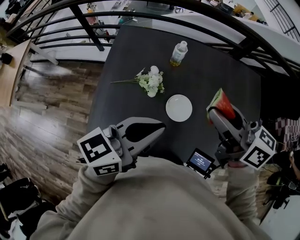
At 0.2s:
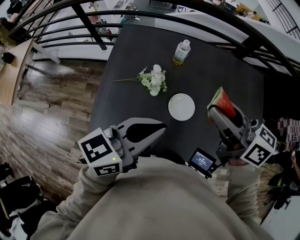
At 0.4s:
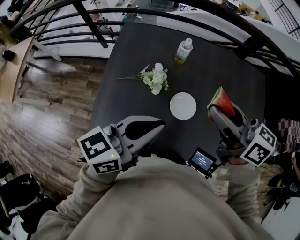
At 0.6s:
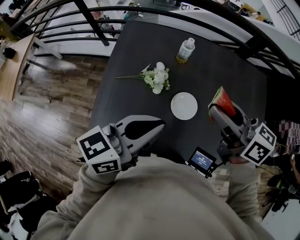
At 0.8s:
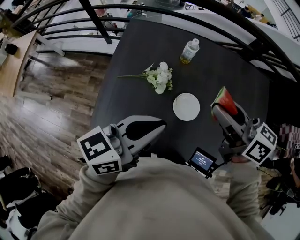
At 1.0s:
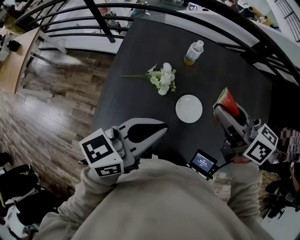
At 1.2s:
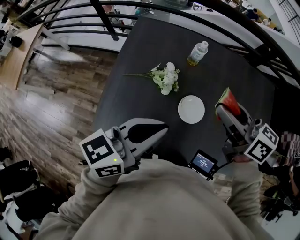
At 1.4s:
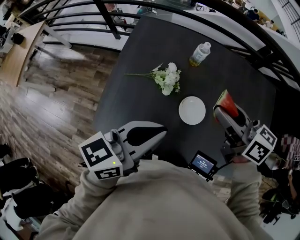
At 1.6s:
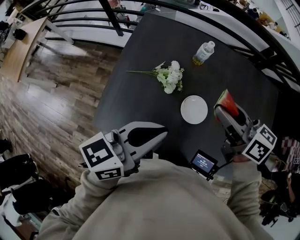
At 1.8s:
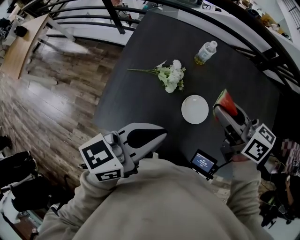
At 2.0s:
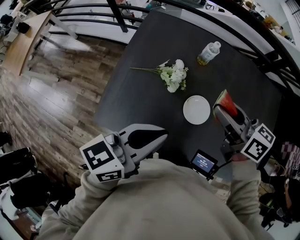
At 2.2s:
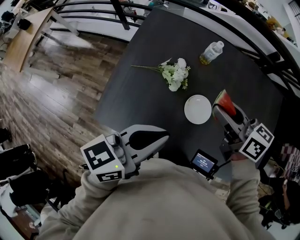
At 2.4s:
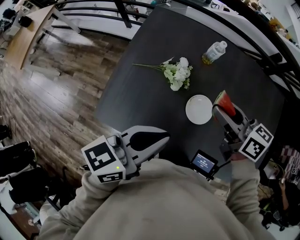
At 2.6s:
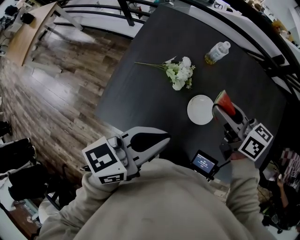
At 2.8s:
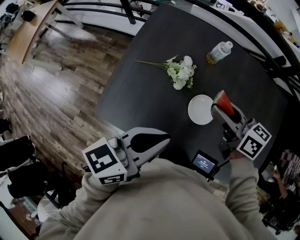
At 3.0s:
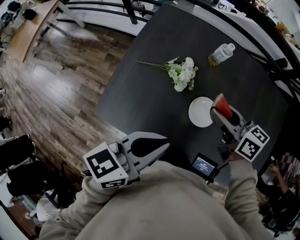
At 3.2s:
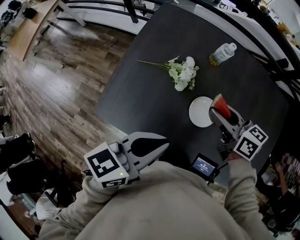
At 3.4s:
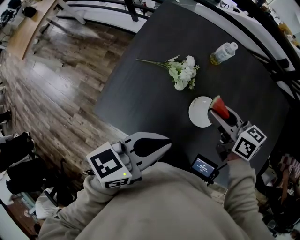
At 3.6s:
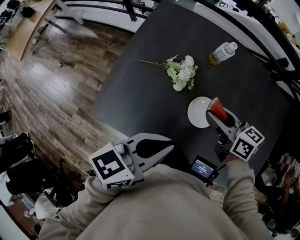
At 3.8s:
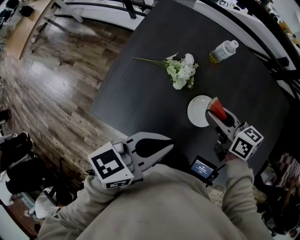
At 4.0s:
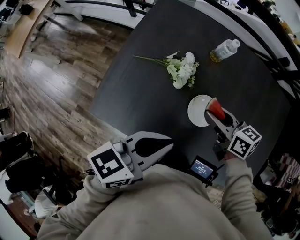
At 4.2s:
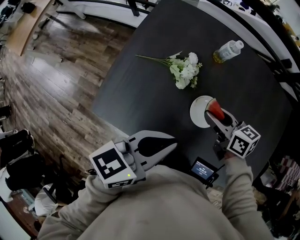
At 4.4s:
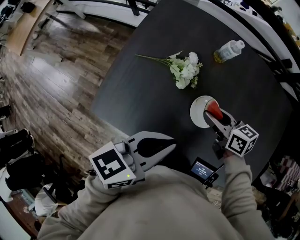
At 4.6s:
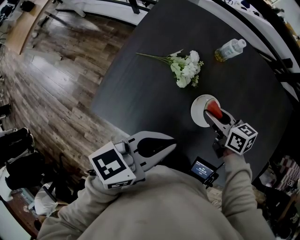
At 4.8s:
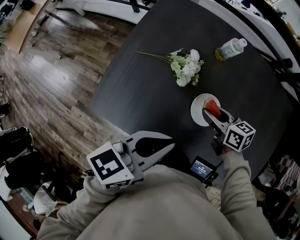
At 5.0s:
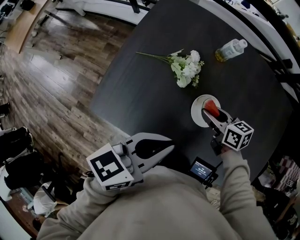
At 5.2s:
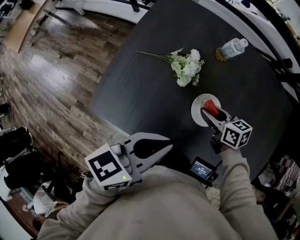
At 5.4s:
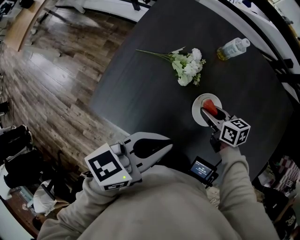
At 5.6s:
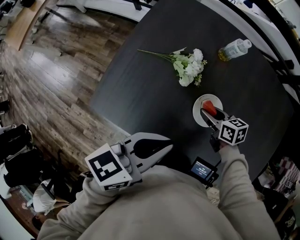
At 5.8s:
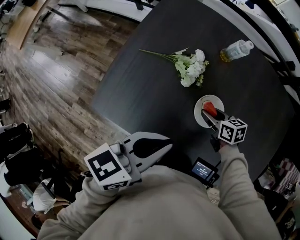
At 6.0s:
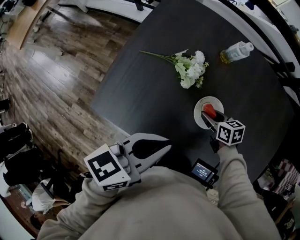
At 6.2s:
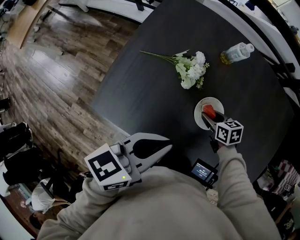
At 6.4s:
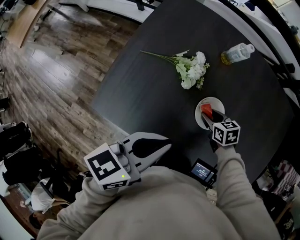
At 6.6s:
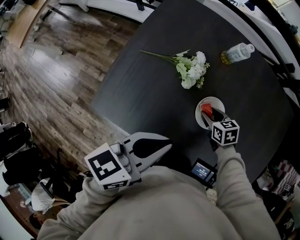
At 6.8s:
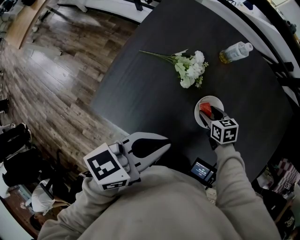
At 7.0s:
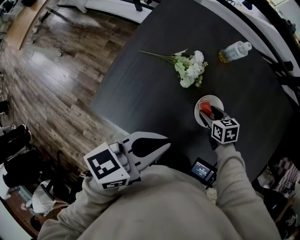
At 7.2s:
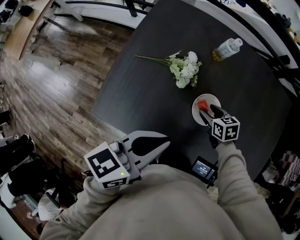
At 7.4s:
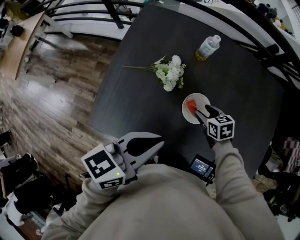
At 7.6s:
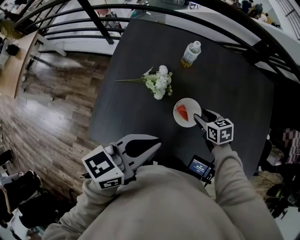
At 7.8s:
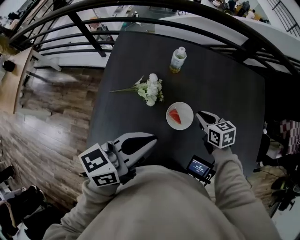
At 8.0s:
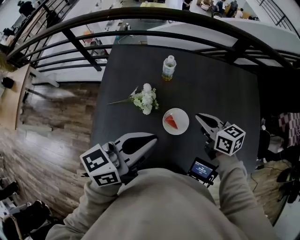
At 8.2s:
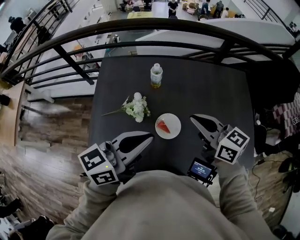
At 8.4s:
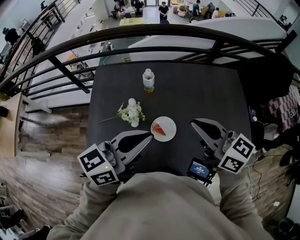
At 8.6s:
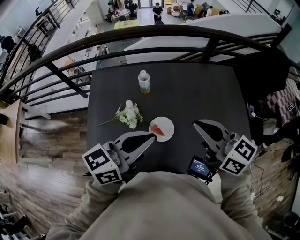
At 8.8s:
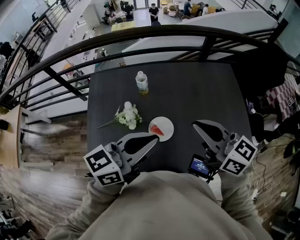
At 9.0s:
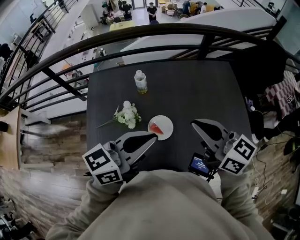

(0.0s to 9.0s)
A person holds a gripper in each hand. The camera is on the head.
0.0s - 1.6s: The right gripper is displaced downward by roughly 10 cm.
1.6s - 3.0s: The right gripper is displaced downward by about 10 cm.
3.0s - 4.4s: The right gripper travels downward by roughly 10 cm.
4.4s - 6.0s: The right gripper shifts about 15 cm downward.
6.0s - 7.6s: The left gripper is displaced upward by some 5 cm. Meanwhile the right gripper travels upward and to the right by roughly 10 cm.
7.6s - 9.0s: The right gripper travels upward by approximately 35 cm, points its fingers about 50 degrees further upward, and closes its fingers. Meanwhile the left gripper heads upward and to the right, covering some 10 cm, and rotates some 20 degrees.

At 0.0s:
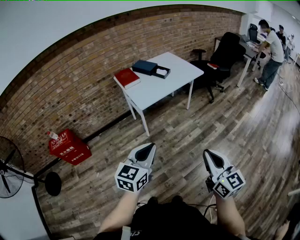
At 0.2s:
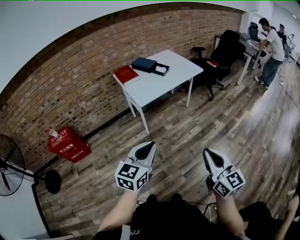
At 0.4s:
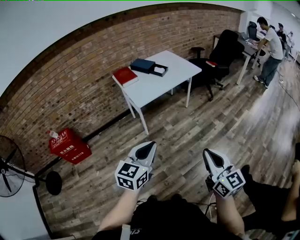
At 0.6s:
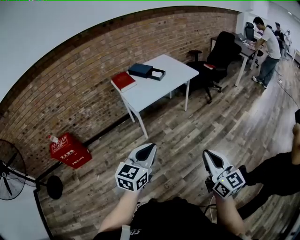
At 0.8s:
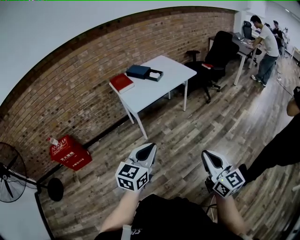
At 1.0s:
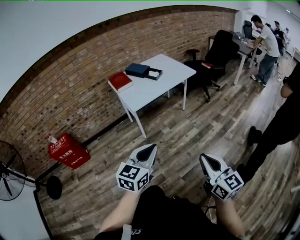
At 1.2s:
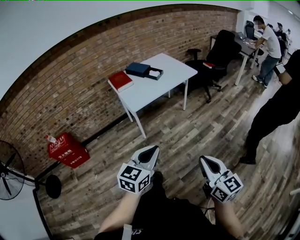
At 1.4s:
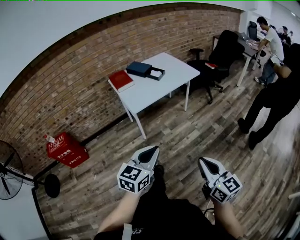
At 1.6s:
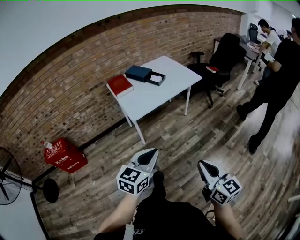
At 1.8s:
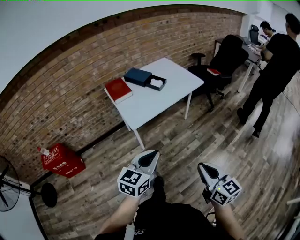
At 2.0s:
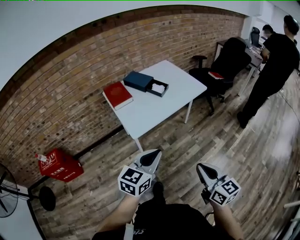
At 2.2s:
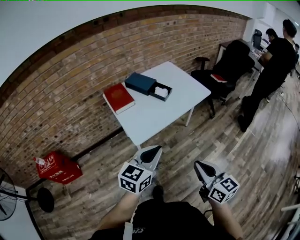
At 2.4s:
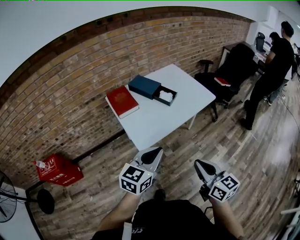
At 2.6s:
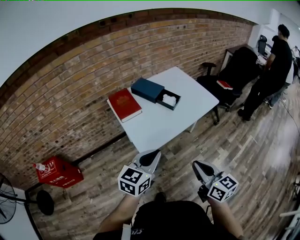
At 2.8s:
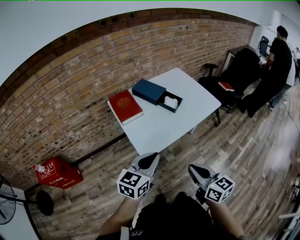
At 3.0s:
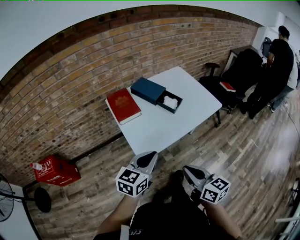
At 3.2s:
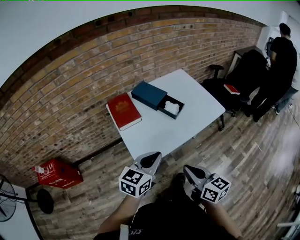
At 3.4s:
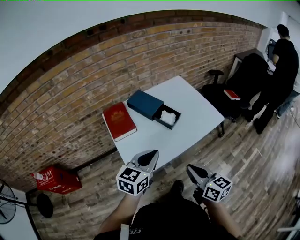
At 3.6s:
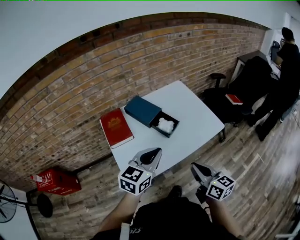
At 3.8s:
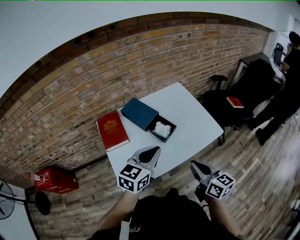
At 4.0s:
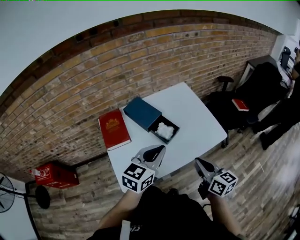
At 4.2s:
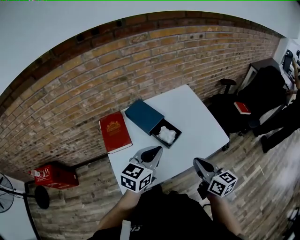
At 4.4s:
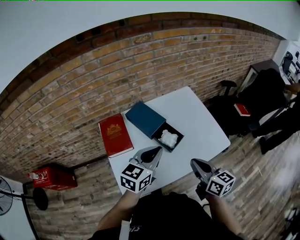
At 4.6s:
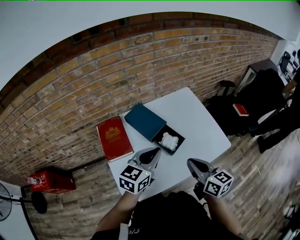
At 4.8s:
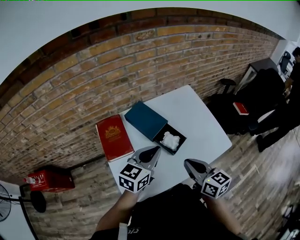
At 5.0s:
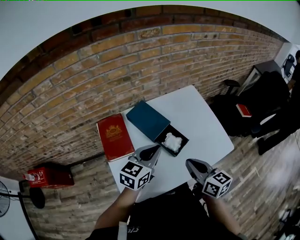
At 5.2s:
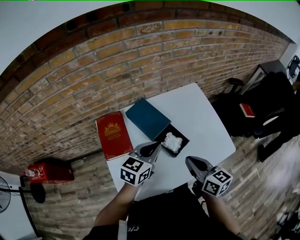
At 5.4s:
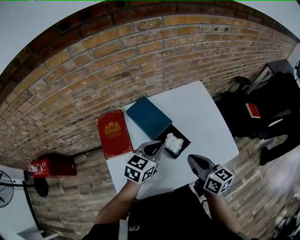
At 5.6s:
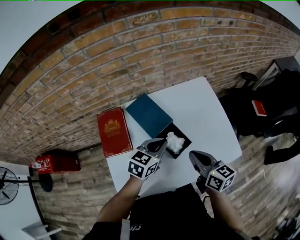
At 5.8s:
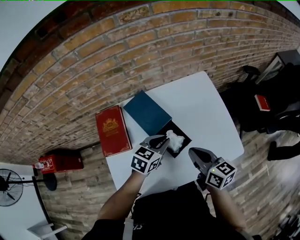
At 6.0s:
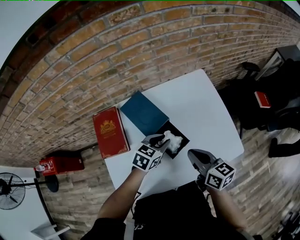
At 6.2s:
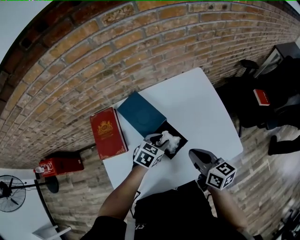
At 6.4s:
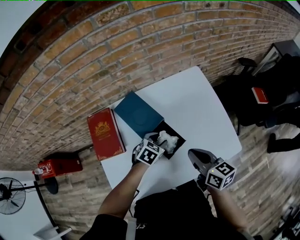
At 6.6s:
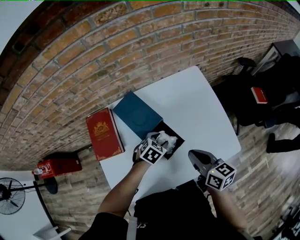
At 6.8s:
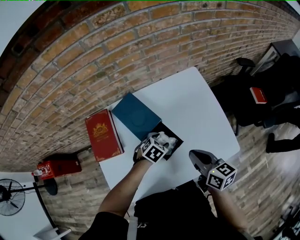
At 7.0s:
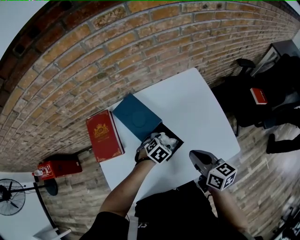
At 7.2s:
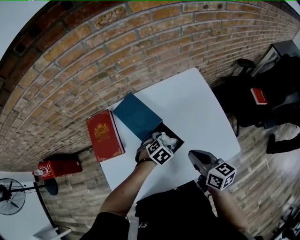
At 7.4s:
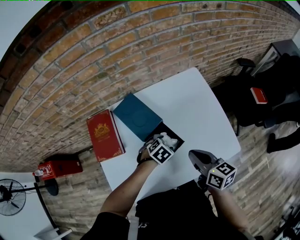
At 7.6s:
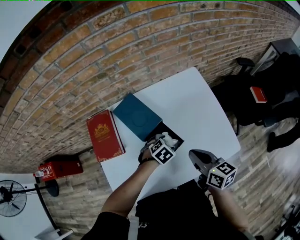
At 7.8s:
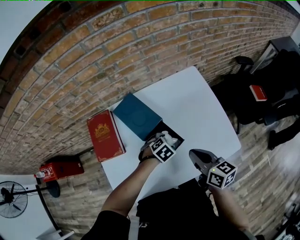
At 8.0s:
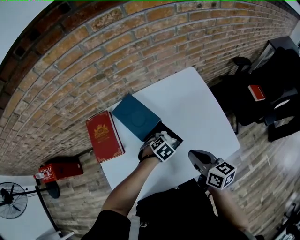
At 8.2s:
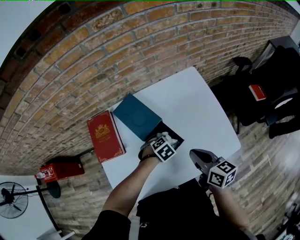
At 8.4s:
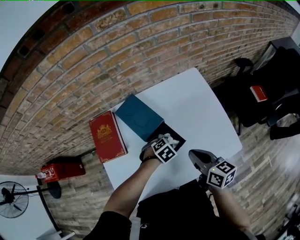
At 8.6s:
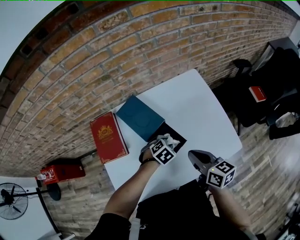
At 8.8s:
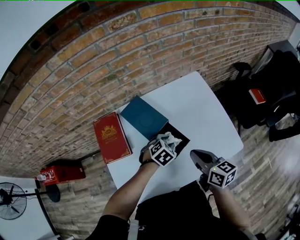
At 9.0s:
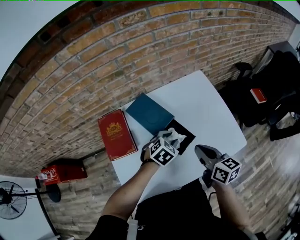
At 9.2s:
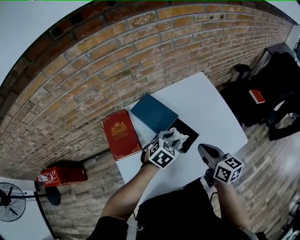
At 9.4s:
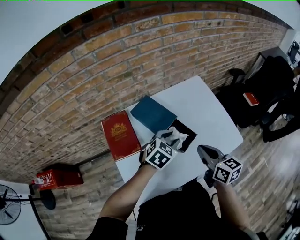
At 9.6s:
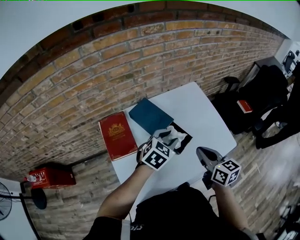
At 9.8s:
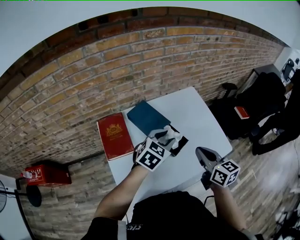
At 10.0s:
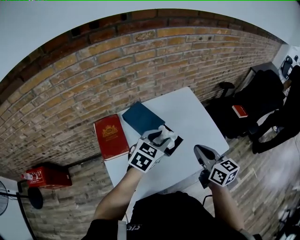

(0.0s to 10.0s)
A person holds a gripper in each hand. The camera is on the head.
0.0s - 1.4s: The right gripper changes place by about 5 cm. The left gripper travels to the right by some 5 cm.
1.4s - 2.8s: The right gripper shifts about 40 cm forward and to the left. Meanwhile the left gripper goes about 35 cm forward.
2.8s - 4.2s: Both grippers move forward and to the right, some 35 cm.
4.2s - 5.8s: The right gripper travels forward by roughly 20 cm, while the left gripper heads forward and downward, covering roughly 25 cm.
5.8s - 7.2s: The left gripper is displaced downward by some 15 cm, tips its fingers downward by approximately 30 degrees, and opens up.
7.2s - 8.6s: The left gripper closes.
8.6s - 10.0s: The right gripper is displaced upward and backward by about 10 cm; the left gripper heads upward, covering some 25 cm, and points its fingers approximately 40 degrees further upward.

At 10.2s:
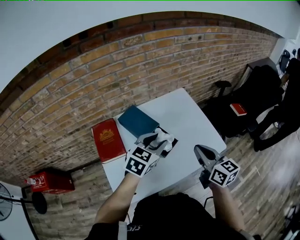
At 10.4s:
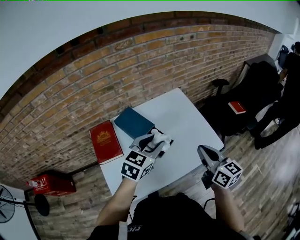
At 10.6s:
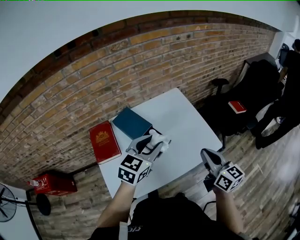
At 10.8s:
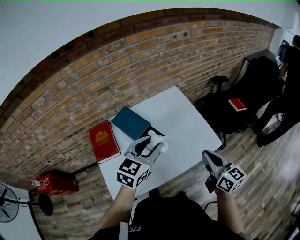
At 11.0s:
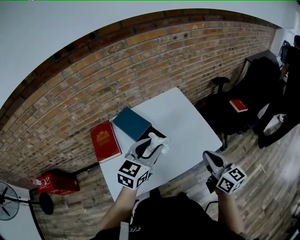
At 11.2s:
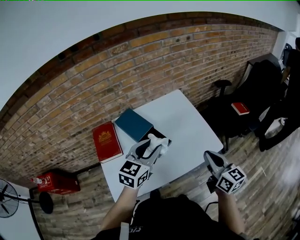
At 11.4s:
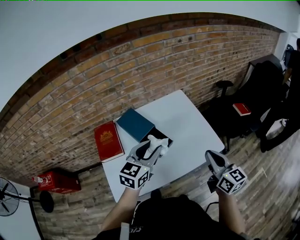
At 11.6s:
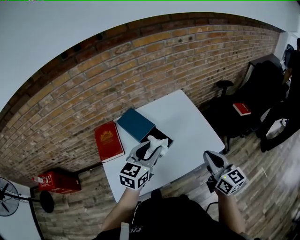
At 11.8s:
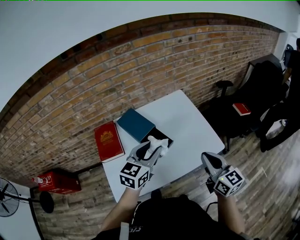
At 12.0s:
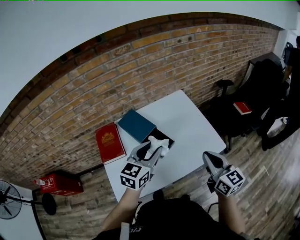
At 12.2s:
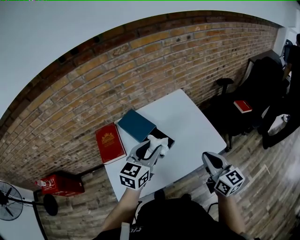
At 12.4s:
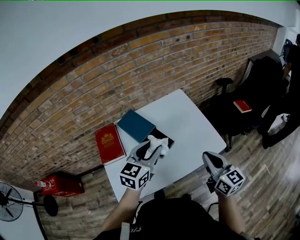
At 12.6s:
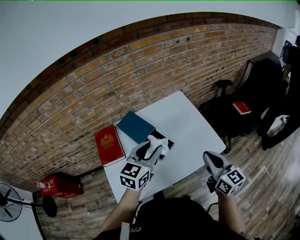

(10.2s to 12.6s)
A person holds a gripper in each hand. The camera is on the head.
10.2s - 11.4s: The left gripper changes place by some 5 cm, while the right gripper moves to the right, some 10 cm.
11.4s - 12.6s: There are only small adjustments of the grippers.

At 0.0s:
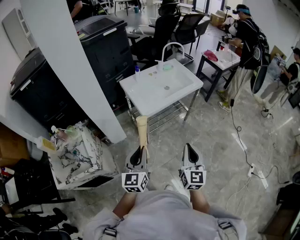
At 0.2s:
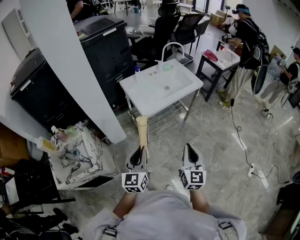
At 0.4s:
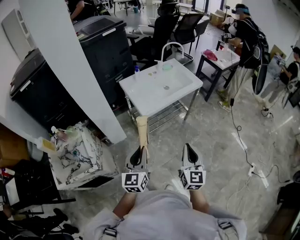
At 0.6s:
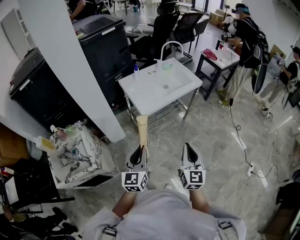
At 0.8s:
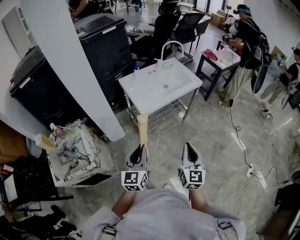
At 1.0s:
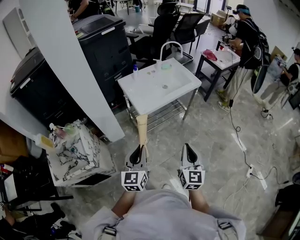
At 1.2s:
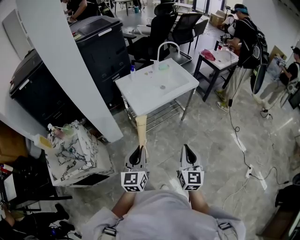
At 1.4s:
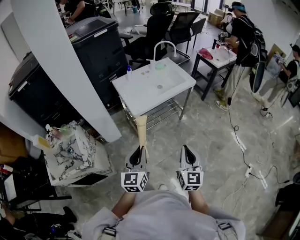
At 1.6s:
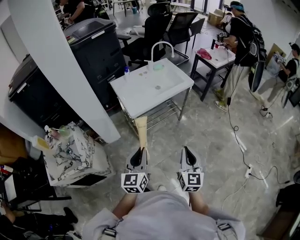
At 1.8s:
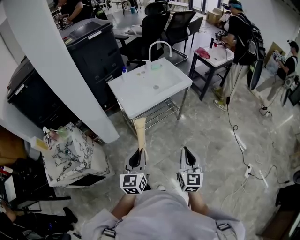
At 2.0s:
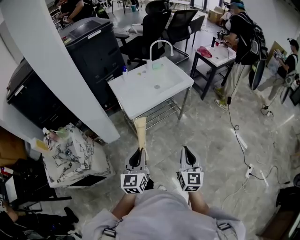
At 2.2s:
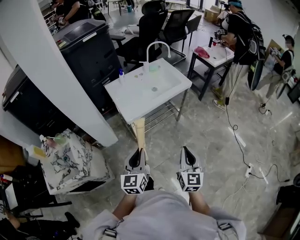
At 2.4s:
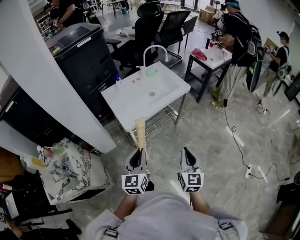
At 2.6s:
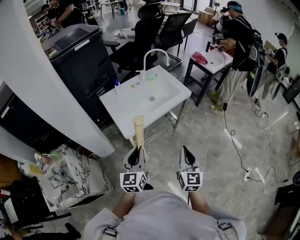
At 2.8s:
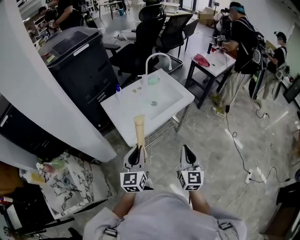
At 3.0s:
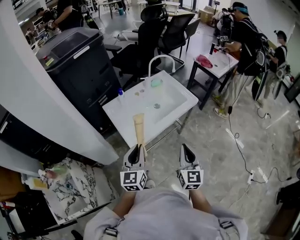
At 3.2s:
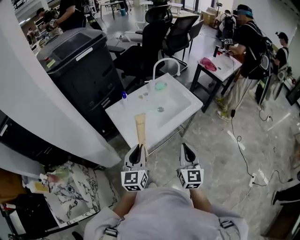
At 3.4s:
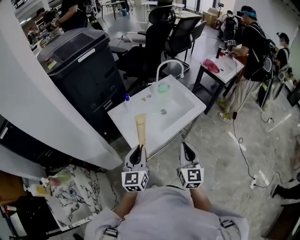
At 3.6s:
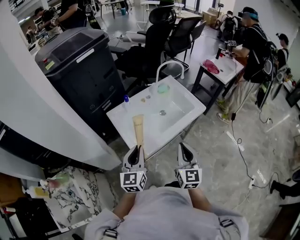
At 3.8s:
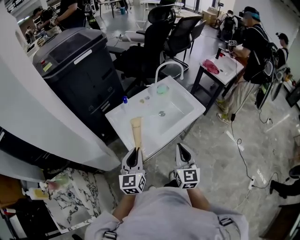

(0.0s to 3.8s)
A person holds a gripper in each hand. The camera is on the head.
0.0s - 1.2s: The right gripper ends up approximately 5 cm from where it was. The left gripper moves to the right, roughly 5 cm.
1.2s - 2.6s: Both grippers travel together forward, some 20 cm.
2.6s - 3.8s: Both grippers move forward and to the left, approximately 20 cm.
